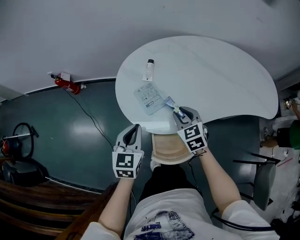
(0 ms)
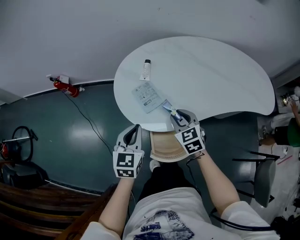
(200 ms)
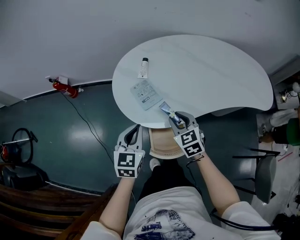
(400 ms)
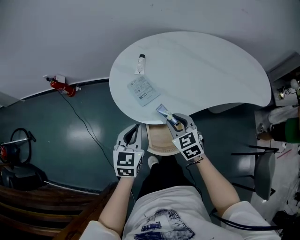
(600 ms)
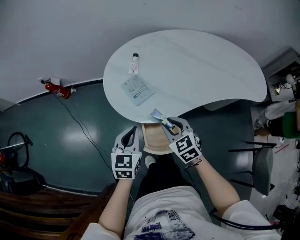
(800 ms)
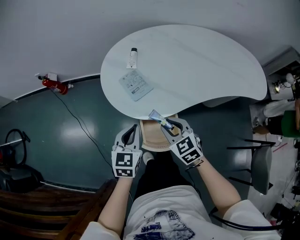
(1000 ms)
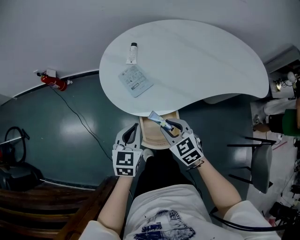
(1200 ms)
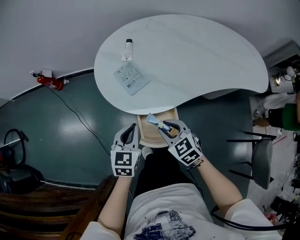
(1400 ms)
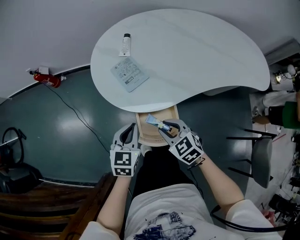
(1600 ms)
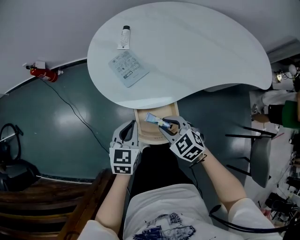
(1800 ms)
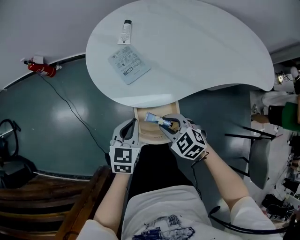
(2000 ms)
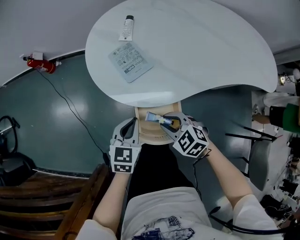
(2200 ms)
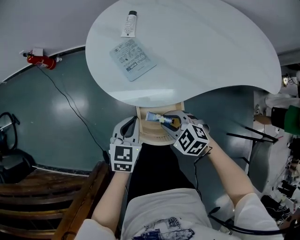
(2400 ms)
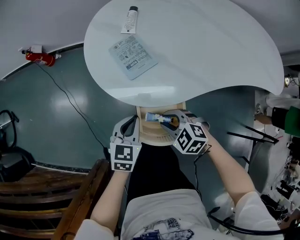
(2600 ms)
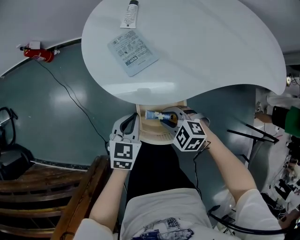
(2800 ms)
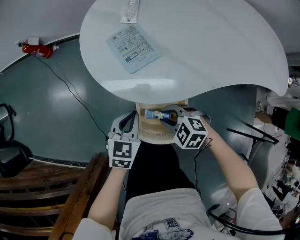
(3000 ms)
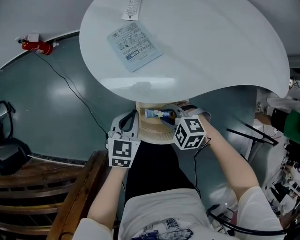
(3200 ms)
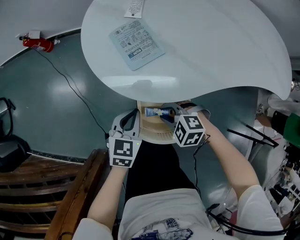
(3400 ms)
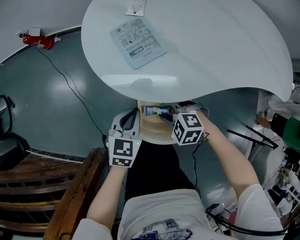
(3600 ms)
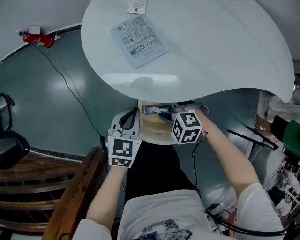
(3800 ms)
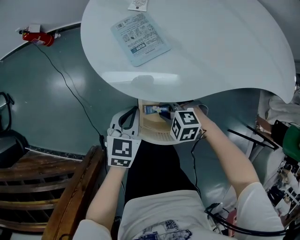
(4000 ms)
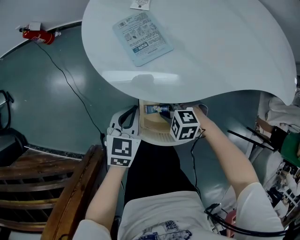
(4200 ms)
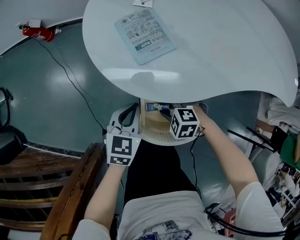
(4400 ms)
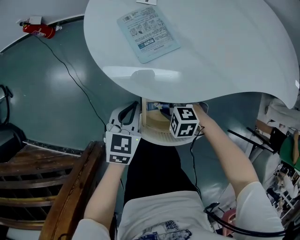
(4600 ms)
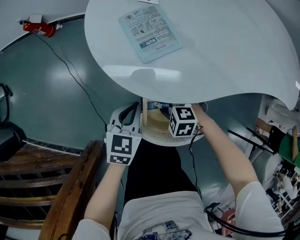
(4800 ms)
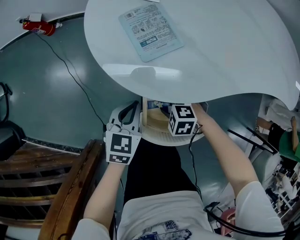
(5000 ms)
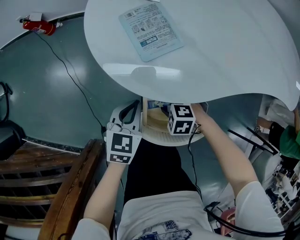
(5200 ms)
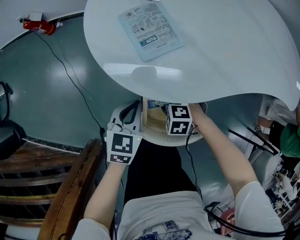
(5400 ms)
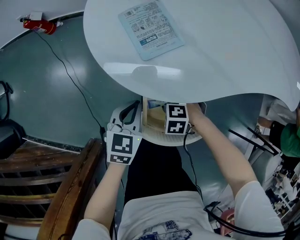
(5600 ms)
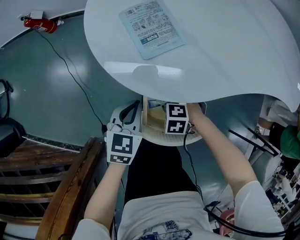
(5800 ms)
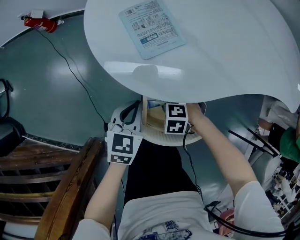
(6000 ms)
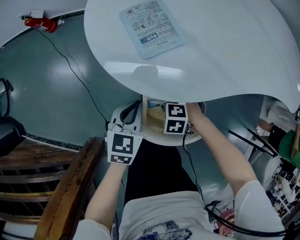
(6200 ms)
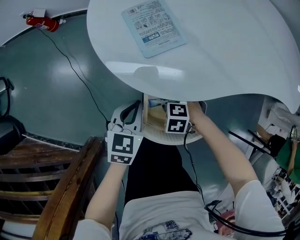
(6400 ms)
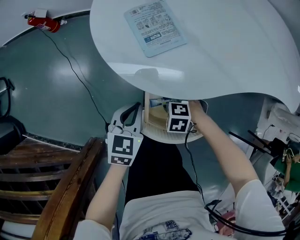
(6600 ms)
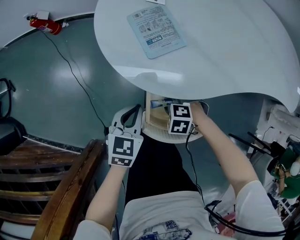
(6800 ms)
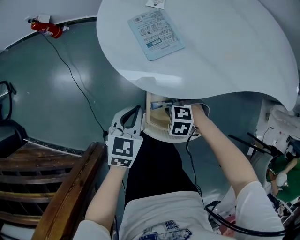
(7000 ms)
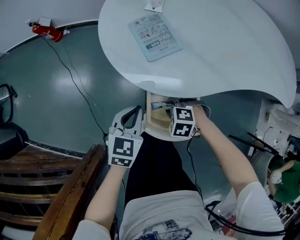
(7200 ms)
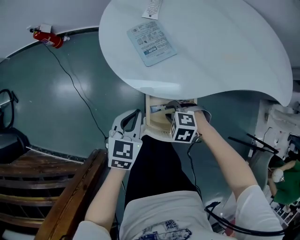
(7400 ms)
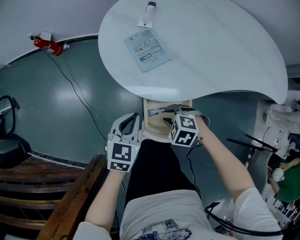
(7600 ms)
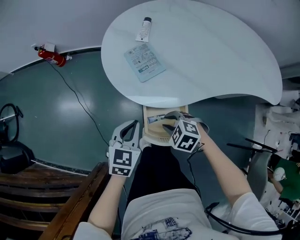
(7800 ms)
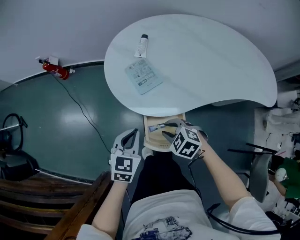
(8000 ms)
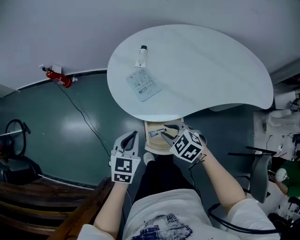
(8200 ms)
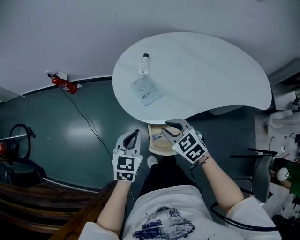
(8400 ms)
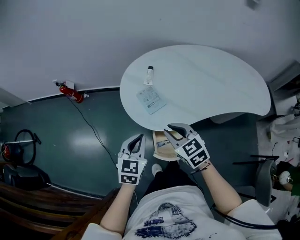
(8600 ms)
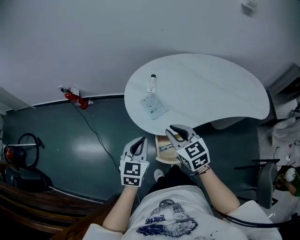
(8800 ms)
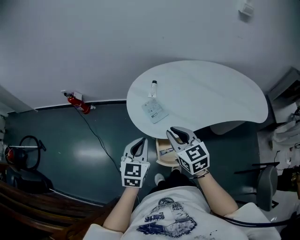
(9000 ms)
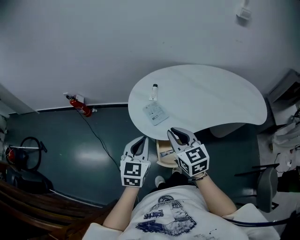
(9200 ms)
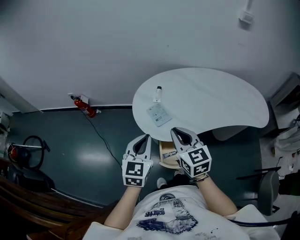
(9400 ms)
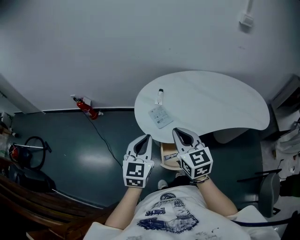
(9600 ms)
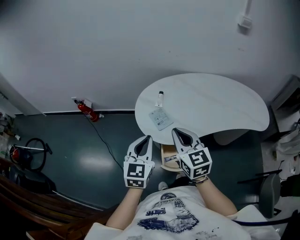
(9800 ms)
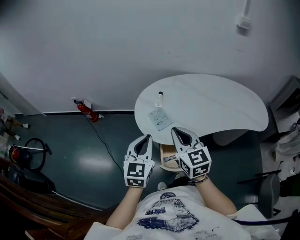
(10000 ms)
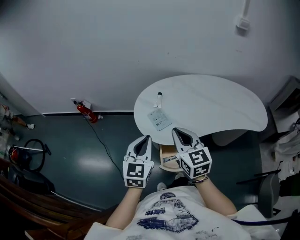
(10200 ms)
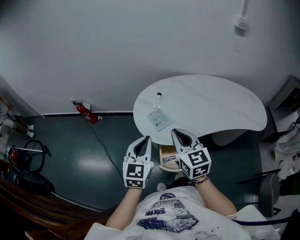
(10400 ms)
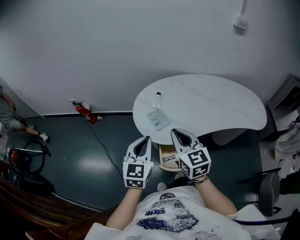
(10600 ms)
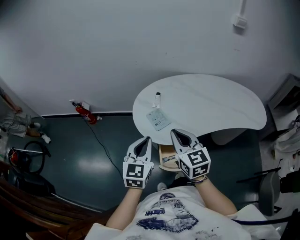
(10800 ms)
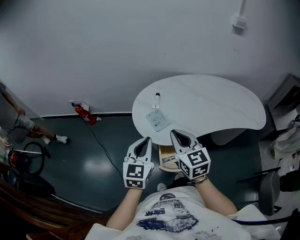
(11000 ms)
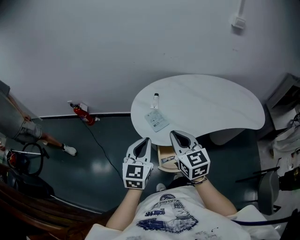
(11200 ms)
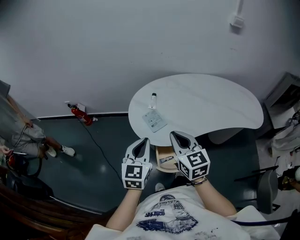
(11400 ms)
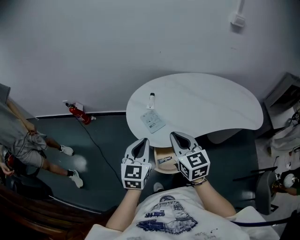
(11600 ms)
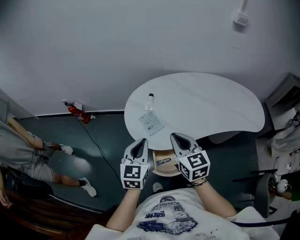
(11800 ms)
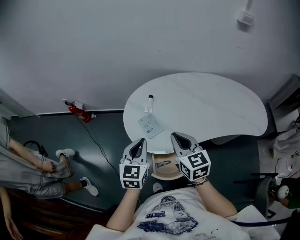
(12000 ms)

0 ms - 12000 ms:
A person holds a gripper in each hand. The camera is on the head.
0 ms - 1600 ms: The right gripper is displaced backward by approximately 15 cm. Meanwhile the left gripper heads downward and backward, covering some 10 cm.
1600 ms - 3000 ms: Both grippers travel together downward, roughly 10 cm. The right gripper swivels approximately 30 degrees.
3000 ms - 4400 ms: The right gripper shifts about 10 cm downward.
4400 ms - 6000 ms: The grippers make only small movements.
6000 ms - 7600 ms: The grippers both shift upward by about 10 cm.
7600 ms - 9000 ms: The two grippers go approximately 30 cm upward. The right gripper angles its fingers upward, by roughly 50 degrees.
9000 ms - 10400 ms: The grippers both shift upward by some 10 cm.
10400 ms - 12000 ms: The left gripper shifts some 10 cm forward, while the right gripper goes roughly 10 cm forward and to the right.

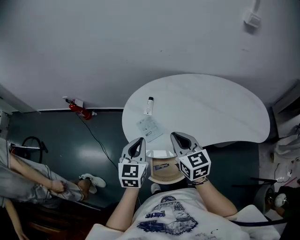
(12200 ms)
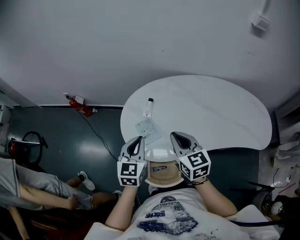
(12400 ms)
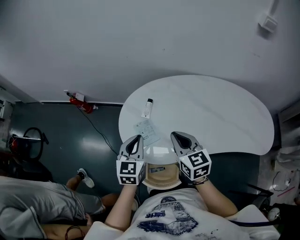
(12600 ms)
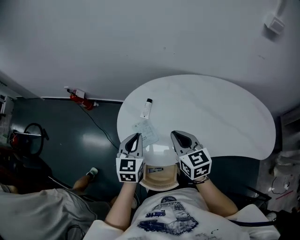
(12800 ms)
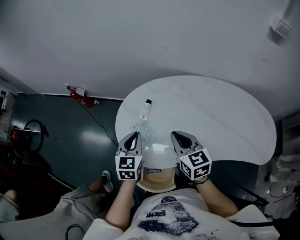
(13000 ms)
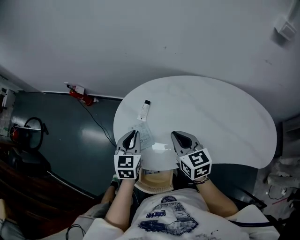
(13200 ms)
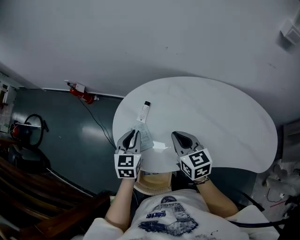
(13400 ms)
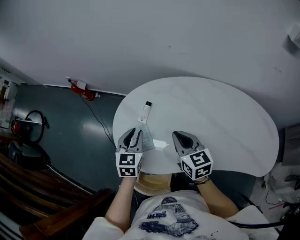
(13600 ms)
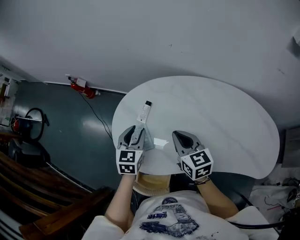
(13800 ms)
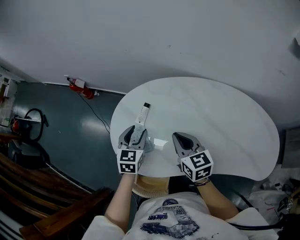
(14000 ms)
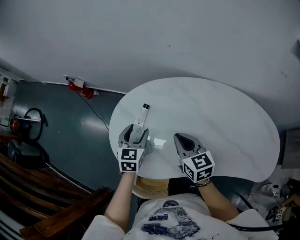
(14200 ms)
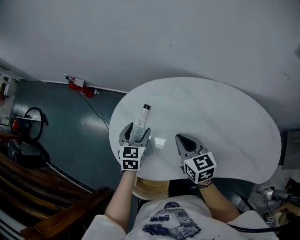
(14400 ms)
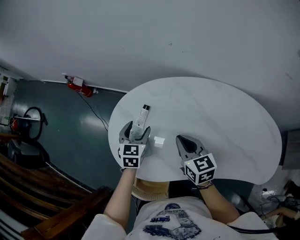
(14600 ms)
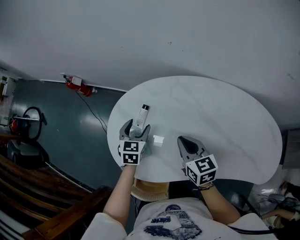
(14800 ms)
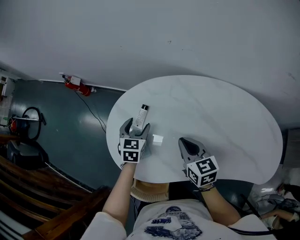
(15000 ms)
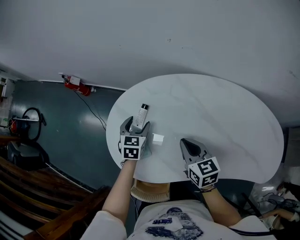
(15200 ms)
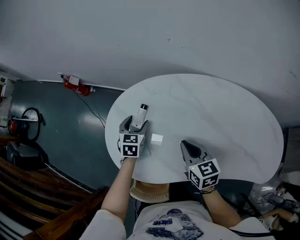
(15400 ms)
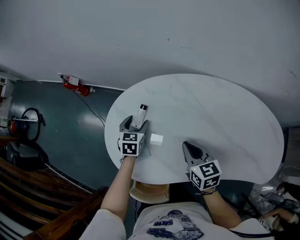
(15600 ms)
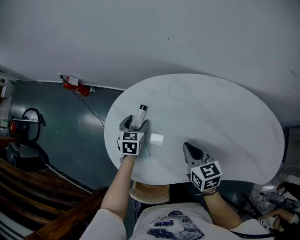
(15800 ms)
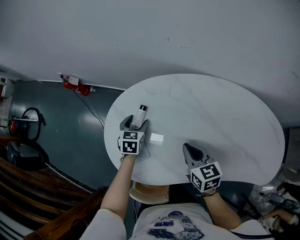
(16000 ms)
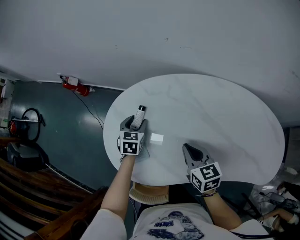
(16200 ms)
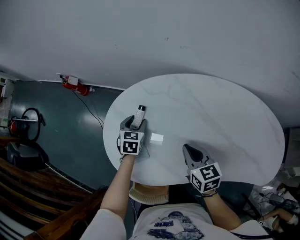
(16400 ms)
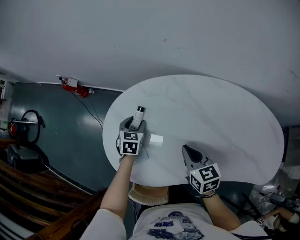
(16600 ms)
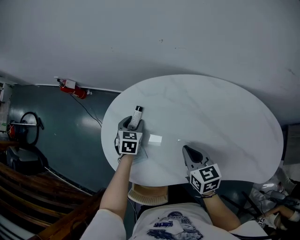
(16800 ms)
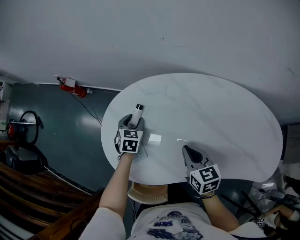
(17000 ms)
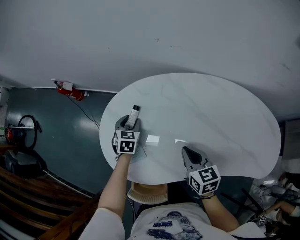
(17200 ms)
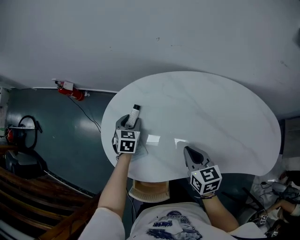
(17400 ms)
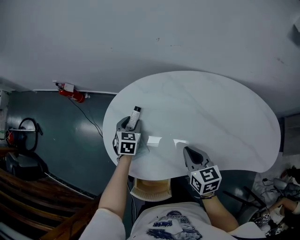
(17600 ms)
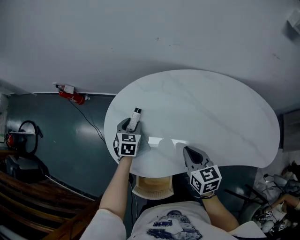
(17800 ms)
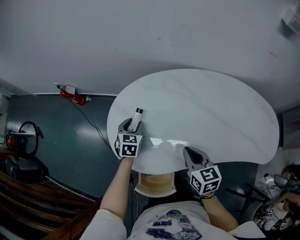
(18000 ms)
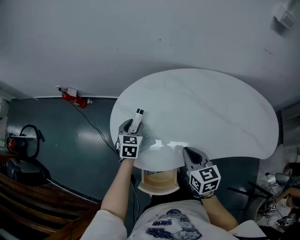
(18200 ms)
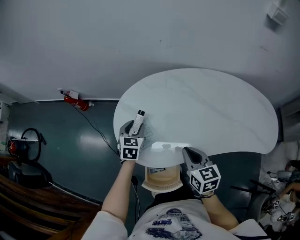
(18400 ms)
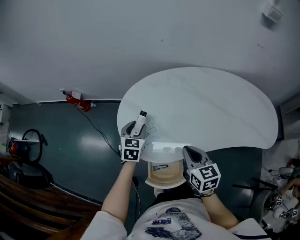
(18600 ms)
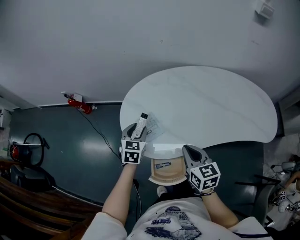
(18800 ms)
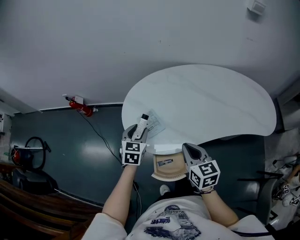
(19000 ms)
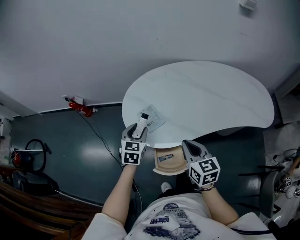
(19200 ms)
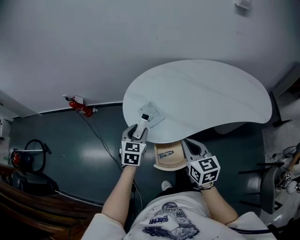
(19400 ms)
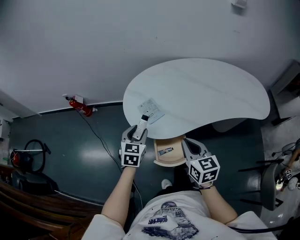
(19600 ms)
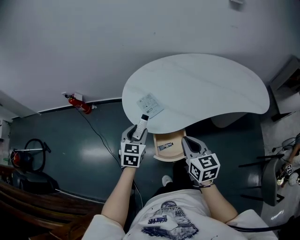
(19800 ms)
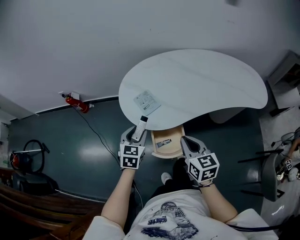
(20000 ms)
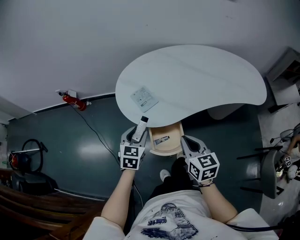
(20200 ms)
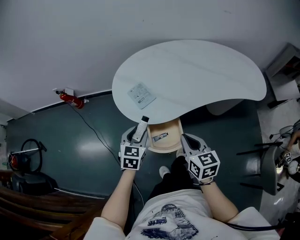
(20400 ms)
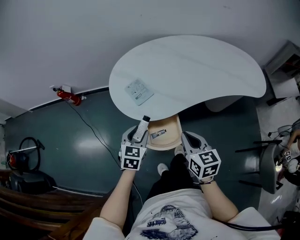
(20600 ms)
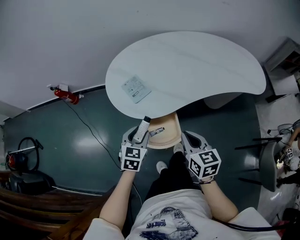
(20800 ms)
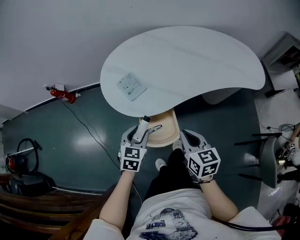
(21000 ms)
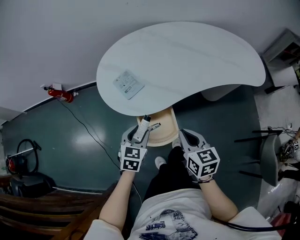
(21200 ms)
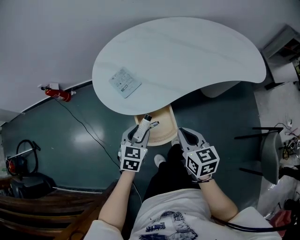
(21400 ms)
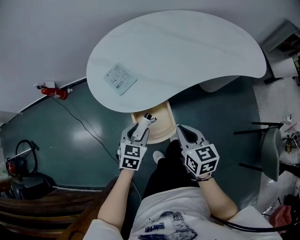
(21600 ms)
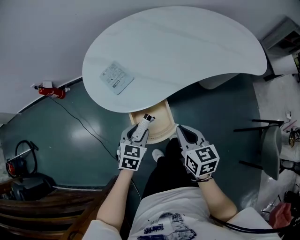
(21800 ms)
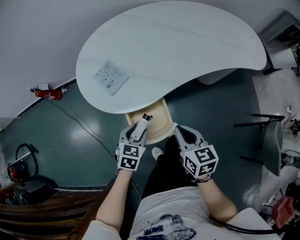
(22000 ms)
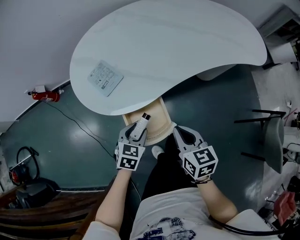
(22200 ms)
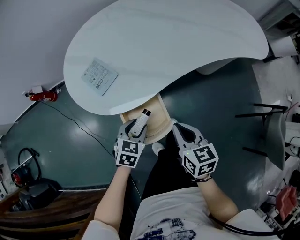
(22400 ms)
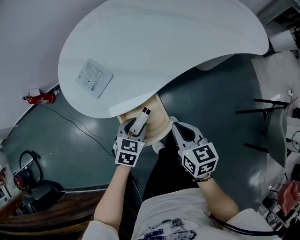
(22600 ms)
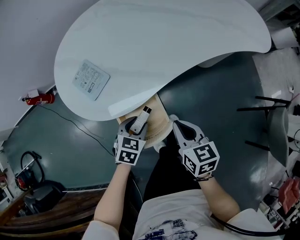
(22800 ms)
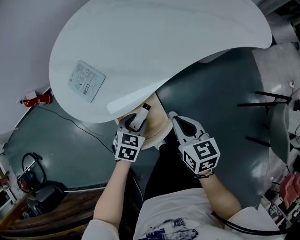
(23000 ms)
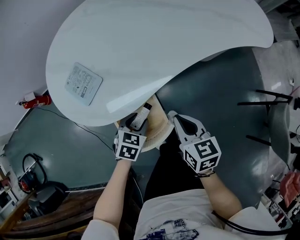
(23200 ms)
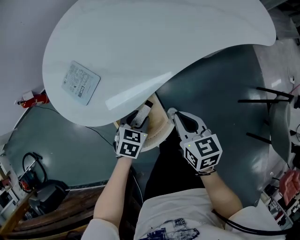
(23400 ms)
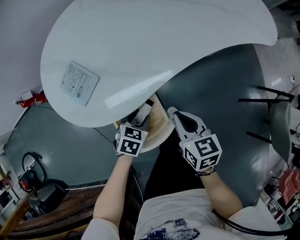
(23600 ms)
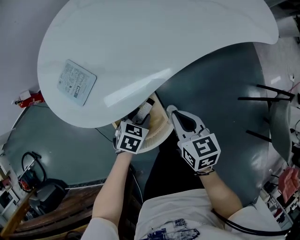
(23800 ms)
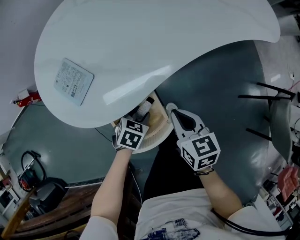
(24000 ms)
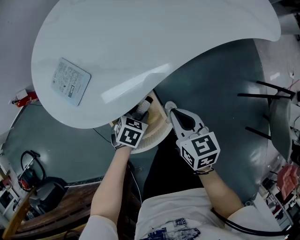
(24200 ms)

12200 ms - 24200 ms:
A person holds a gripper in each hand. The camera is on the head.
12200 ms - 13800 ms: The right gripper is displaced forward, to the right and downward by some 20 cm, while the left gripper goes roughly 20 cm forward, downward and to the right, and opens.
13800 ms - 15200 ms: The right gripper shifts about 5 cm downward. The left gripper shifts some 15 cm downward and forward, and opens up.
15200 ms - 16600 ms: The grippers move only a little.
16600 ms - 18200 ms: The left gripper goes about 10 cm backward and upward. Meanwhile the right gripper moves backward, some 10 cm.
18200 ms - 19800 ms: The left gripper shifts some 25 cm backward. The right gripper travels backward and to the left by approximately 20 cm.
19800 ms - 21200 ms: The left gripper goes roughly 15 cm downward, to the right and backward. Meanwhile the right gripper goes approximately 10 cm downward.
21200 ms - 22600 ms: The left gripper moves downward and to the right, roughly 15 cm. Meanwhile the right gripper travels downward by roughly 10 cm.
22600 ms - 24200 ms: The right gripper is displaced downward by approximately 5 cm; the left gripper moves downward, approximately 10 cm.
